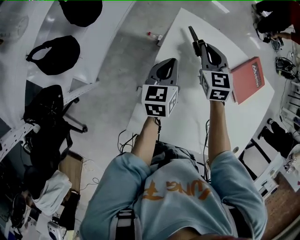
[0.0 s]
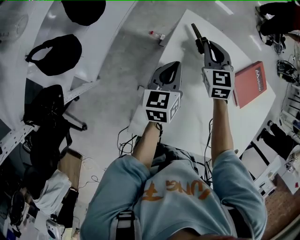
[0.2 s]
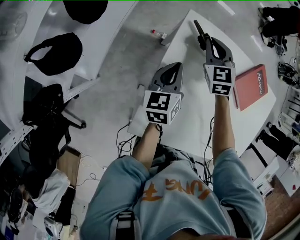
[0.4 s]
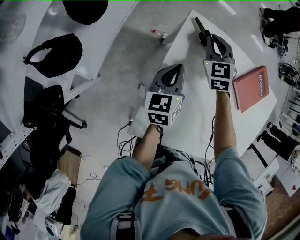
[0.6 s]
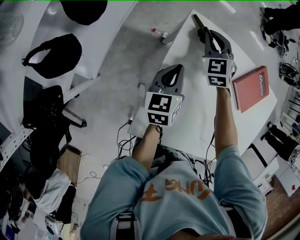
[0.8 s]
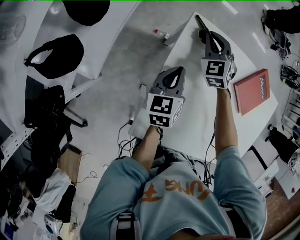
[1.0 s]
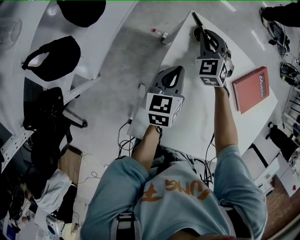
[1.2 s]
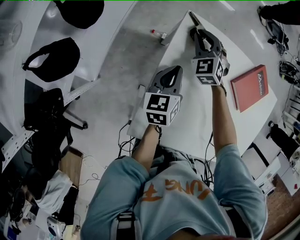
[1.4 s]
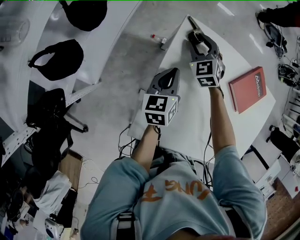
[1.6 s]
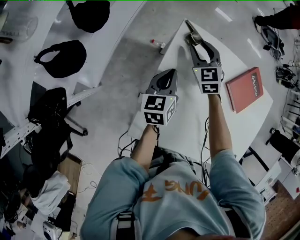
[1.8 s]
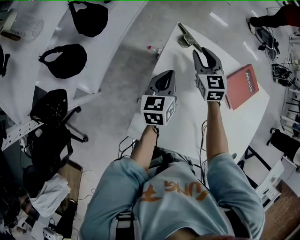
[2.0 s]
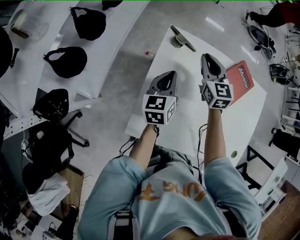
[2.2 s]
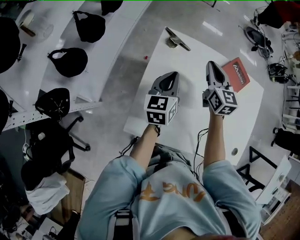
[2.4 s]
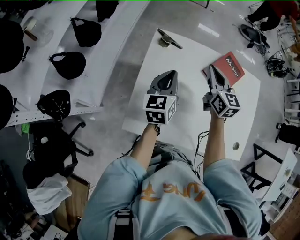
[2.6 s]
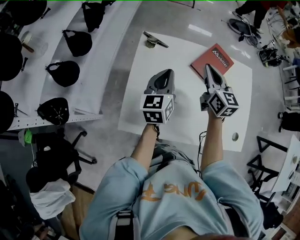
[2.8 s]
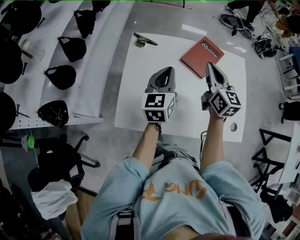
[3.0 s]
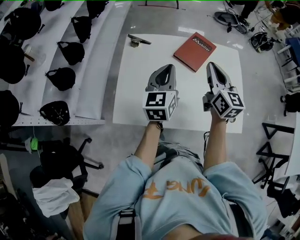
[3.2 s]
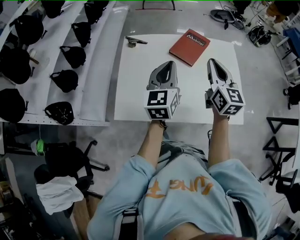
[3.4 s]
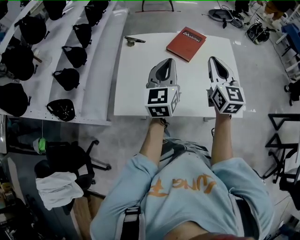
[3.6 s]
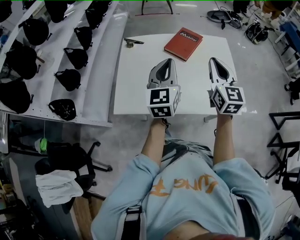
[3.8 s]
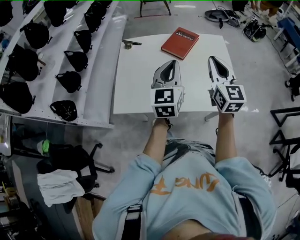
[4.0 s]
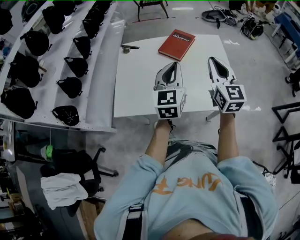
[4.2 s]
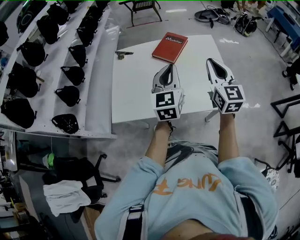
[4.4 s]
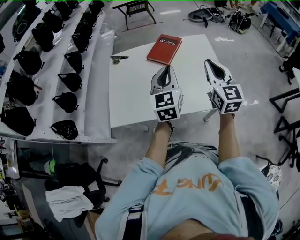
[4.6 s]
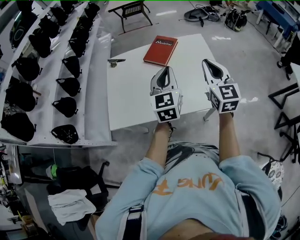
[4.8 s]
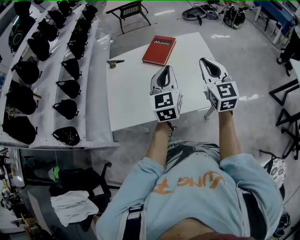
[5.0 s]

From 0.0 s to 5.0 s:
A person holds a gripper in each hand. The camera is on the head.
From 0.0 s to 1.6 s: The right gripper shifts approximately 10 cm downward, forward and to the left, swivels roughly 20 degrees, and opens up.
From 1.6 s to 3.4 s: The right gripper goes approximately 60 cm to the right, backward and upward, tilts its fingers about 30 degrees upward, and closes its fingers; the left gripper travels to the right, upward and backward by approximately 40 cm, and turns by roughly 30 degrees.
From 3.4 s to 5.0 s: The grippers both shift to the right and backward by approximately 20 cm.

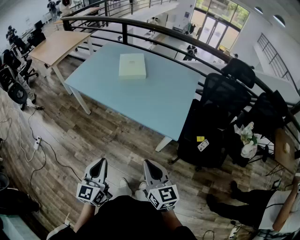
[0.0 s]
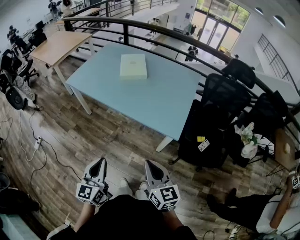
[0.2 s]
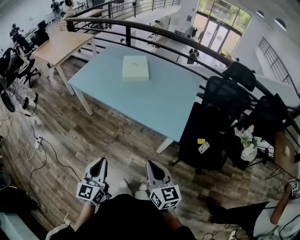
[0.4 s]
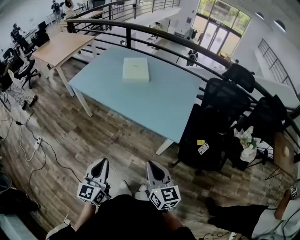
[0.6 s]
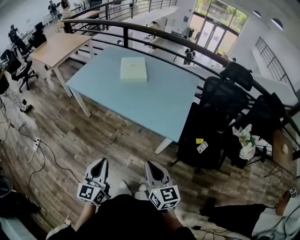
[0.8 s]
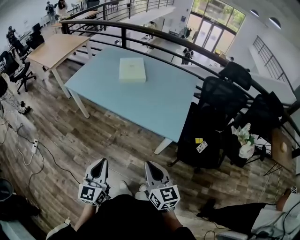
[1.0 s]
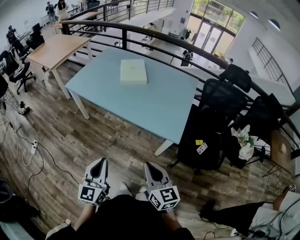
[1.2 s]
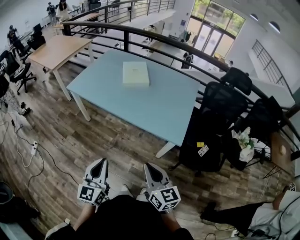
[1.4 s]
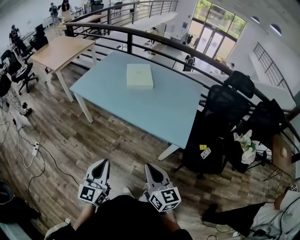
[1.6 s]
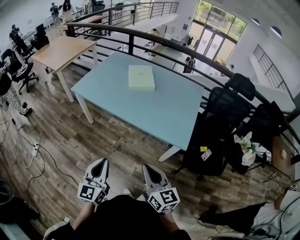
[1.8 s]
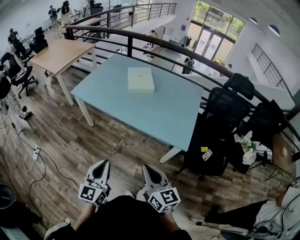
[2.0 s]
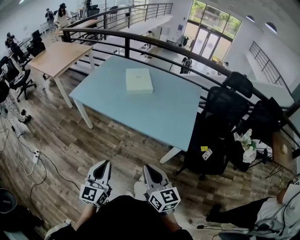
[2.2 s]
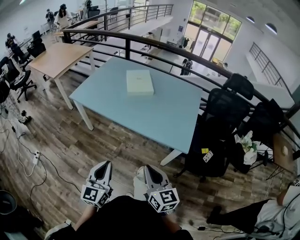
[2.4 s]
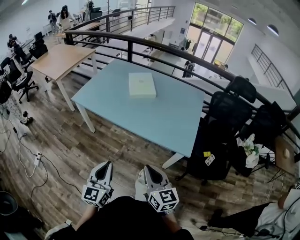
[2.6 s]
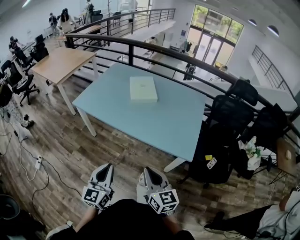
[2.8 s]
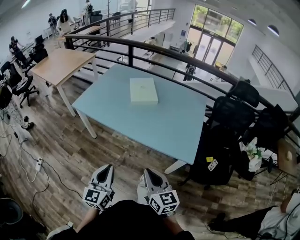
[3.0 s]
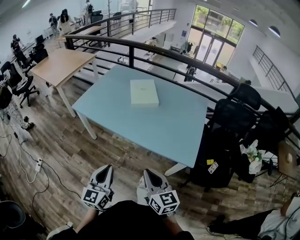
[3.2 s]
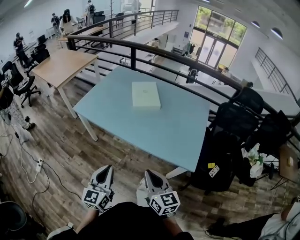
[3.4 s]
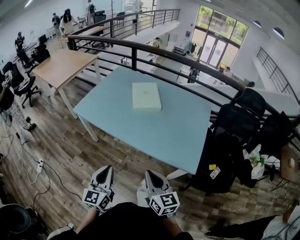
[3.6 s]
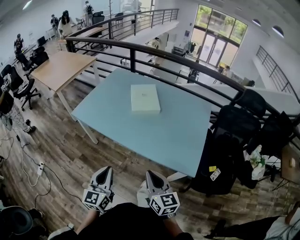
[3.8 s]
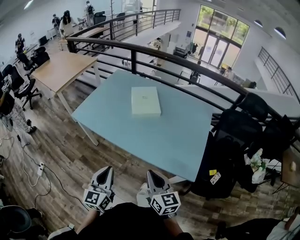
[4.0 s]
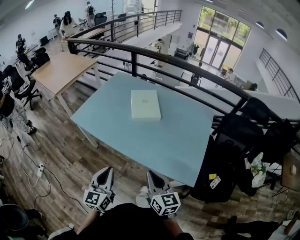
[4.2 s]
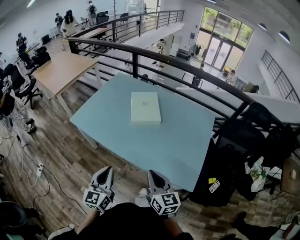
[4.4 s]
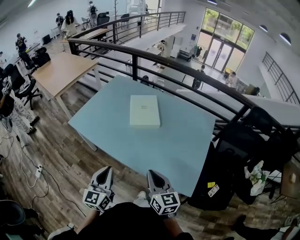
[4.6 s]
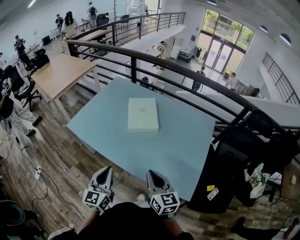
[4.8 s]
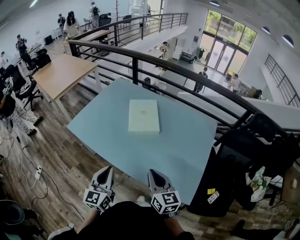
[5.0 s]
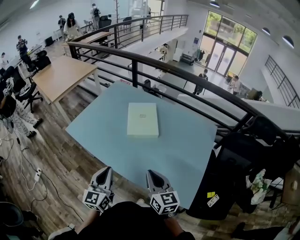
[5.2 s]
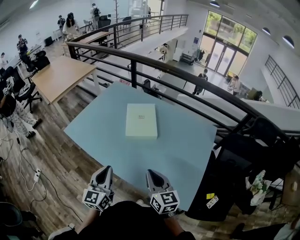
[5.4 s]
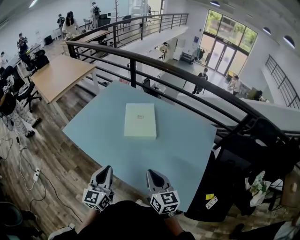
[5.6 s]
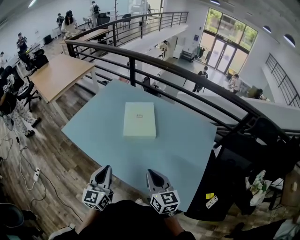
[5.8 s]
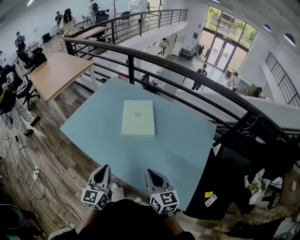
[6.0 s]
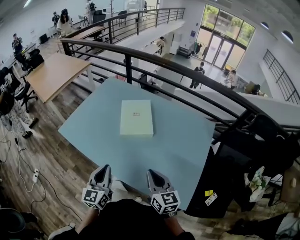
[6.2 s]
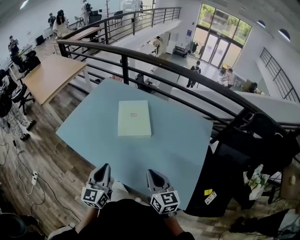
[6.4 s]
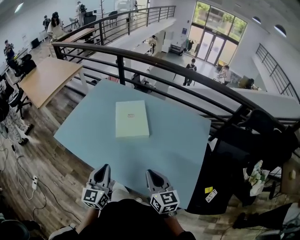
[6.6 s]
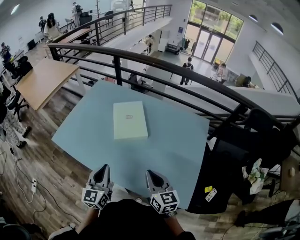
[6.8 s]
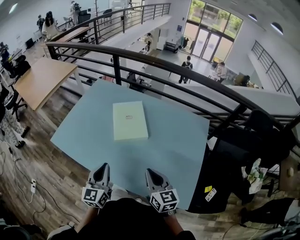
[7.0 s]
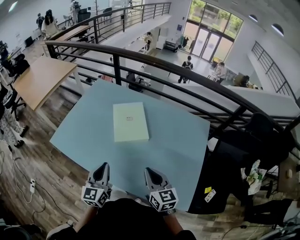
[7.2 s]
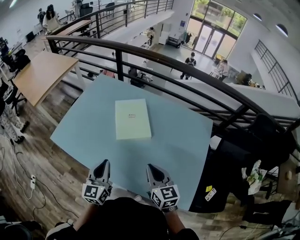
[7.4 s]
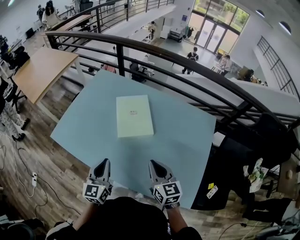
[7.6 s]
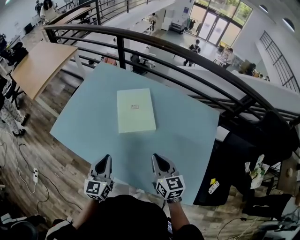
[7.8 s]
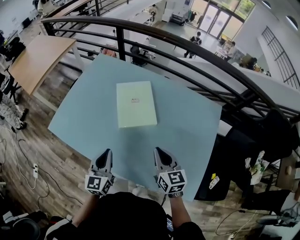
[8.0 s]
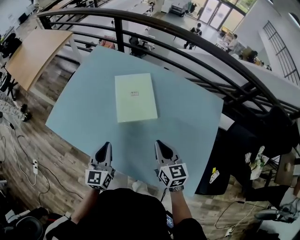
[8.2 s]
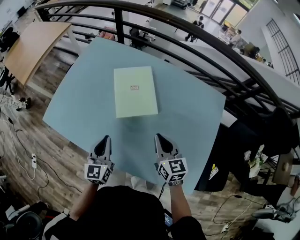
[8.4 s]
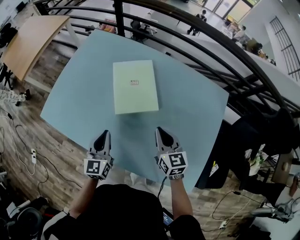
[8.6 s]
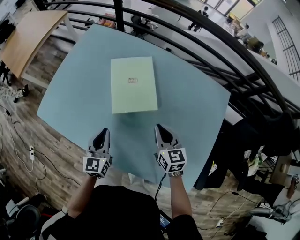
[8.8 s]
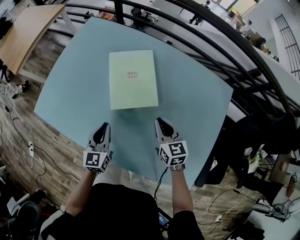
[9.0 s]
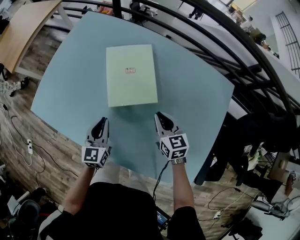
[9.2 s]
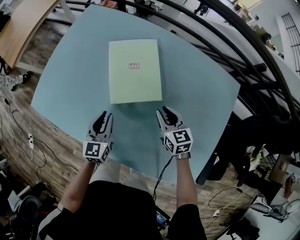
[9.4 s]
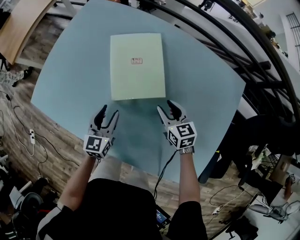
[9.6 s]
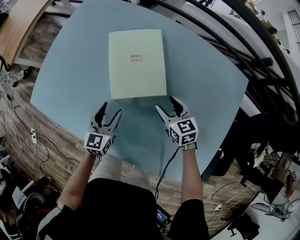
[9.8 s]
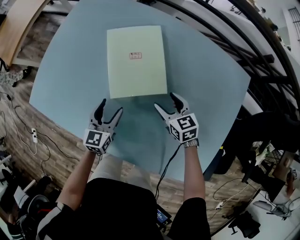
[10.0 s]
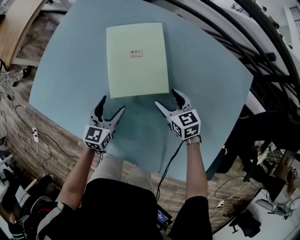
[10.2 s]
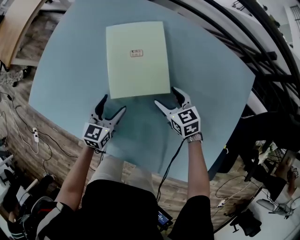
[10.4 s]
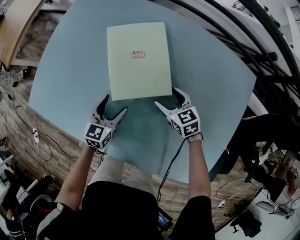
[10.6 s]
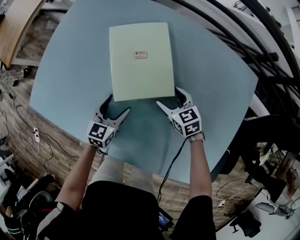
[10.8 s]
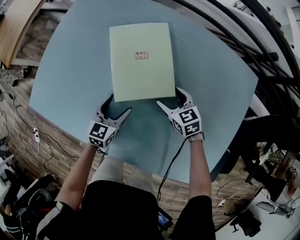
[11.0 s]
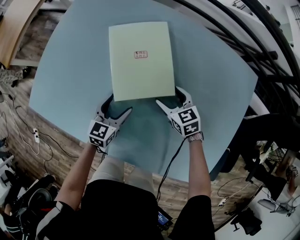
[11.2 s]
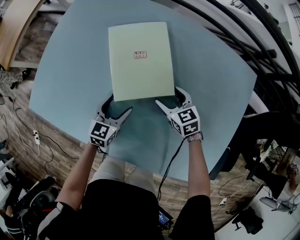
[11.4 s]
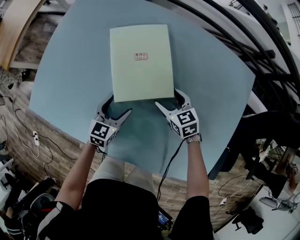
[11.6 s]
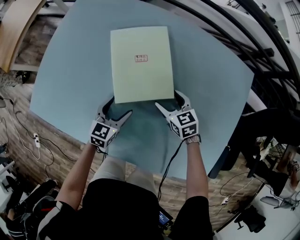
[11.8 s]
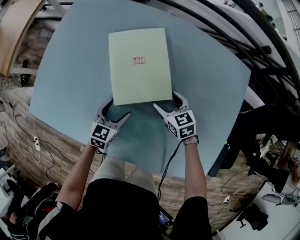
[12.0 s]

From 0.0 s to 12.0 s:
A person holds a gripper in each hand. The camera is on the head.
From 0.0 s to 1.6 s: The grippers both shift to the left by about 5 cm.
From 1.6 s to 3.0 s: The grippers both shift forward by approximately 10 cm.
From 3.0 s to 4.4 s: Both grippers move forward, roughly 15 cm.
From 4.4 s to 6.0 s: The left gripper goes about 15 cm forward; the right gripper travels forward and to the right by approximately 15 cm.
From 6.0 s to 7.6 s: The two grippers go about 10 cm forward.
From 7.6 s to 9.0 s: Both grippers move downward and forward, roughly 20 cm.
From 9.0 s to 10.4 s: The grippers both shift downward and forward by some 15 cm. The right gripper opens, while the left gripper opens its fingers.
From 10.4 s to 12.0 s: There are only small adjustments of the grippers.

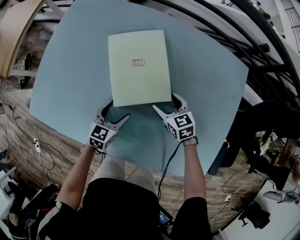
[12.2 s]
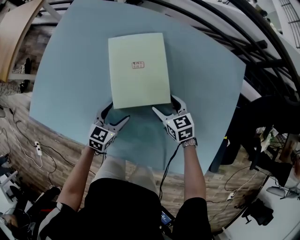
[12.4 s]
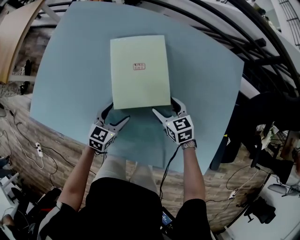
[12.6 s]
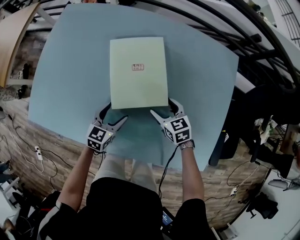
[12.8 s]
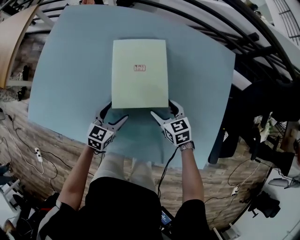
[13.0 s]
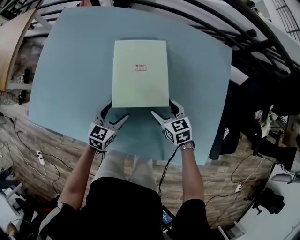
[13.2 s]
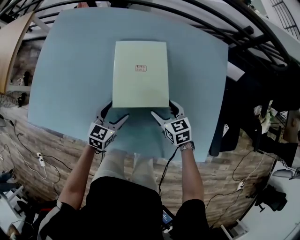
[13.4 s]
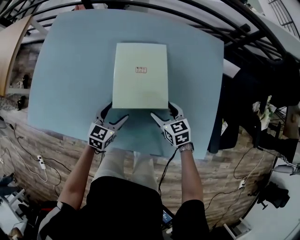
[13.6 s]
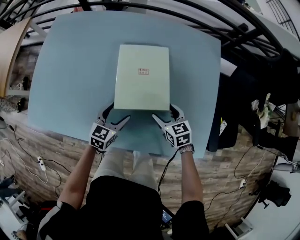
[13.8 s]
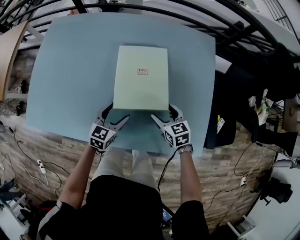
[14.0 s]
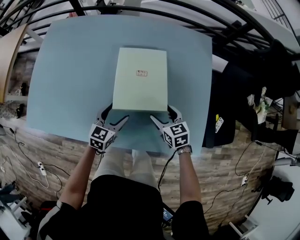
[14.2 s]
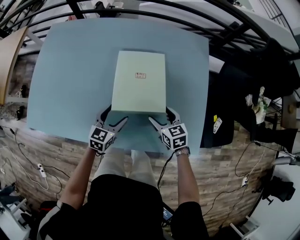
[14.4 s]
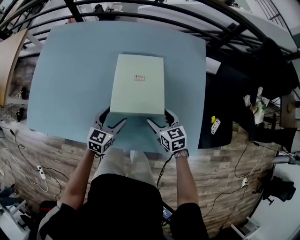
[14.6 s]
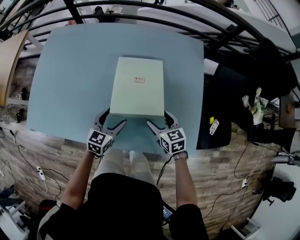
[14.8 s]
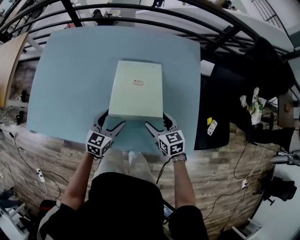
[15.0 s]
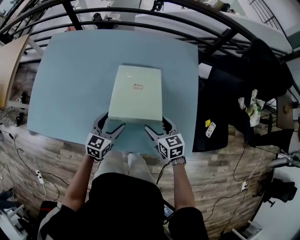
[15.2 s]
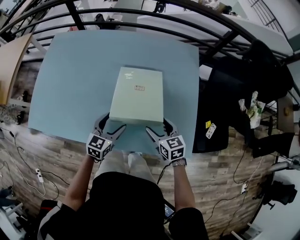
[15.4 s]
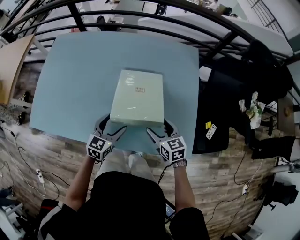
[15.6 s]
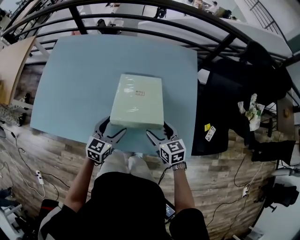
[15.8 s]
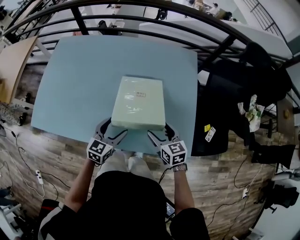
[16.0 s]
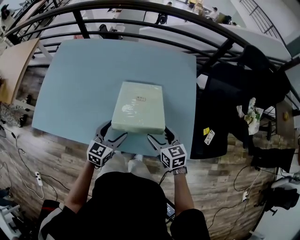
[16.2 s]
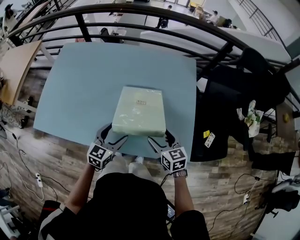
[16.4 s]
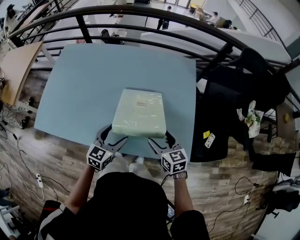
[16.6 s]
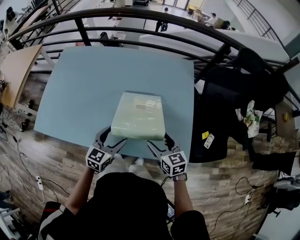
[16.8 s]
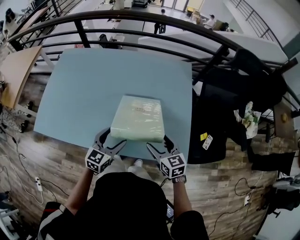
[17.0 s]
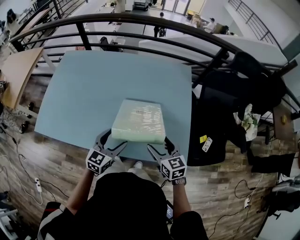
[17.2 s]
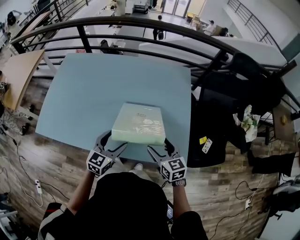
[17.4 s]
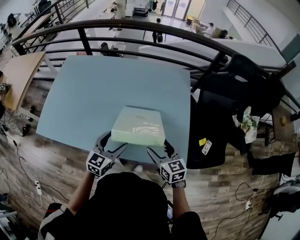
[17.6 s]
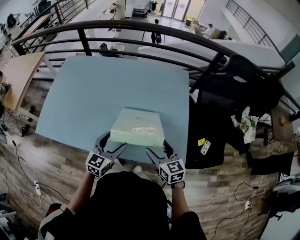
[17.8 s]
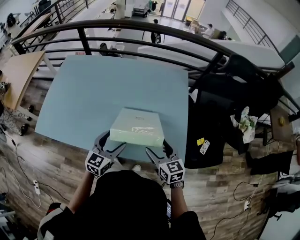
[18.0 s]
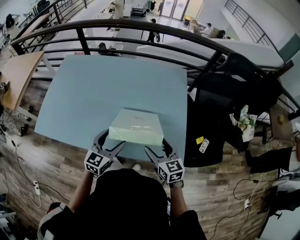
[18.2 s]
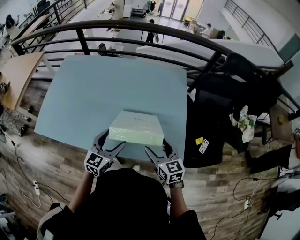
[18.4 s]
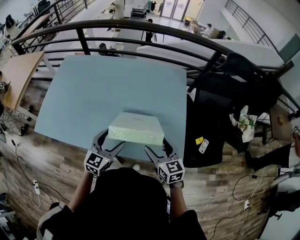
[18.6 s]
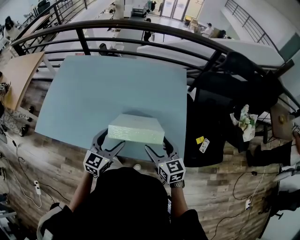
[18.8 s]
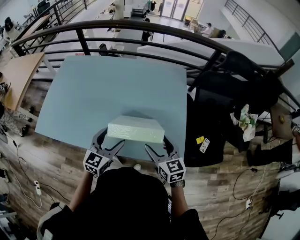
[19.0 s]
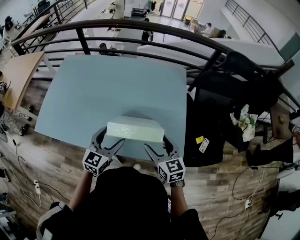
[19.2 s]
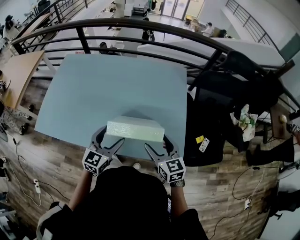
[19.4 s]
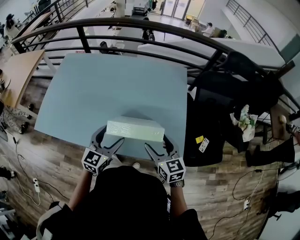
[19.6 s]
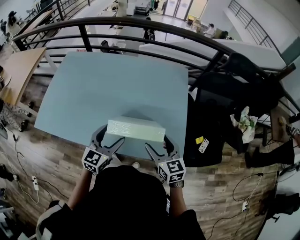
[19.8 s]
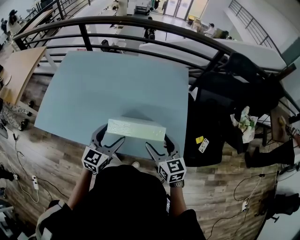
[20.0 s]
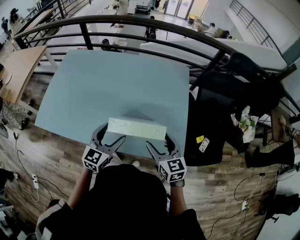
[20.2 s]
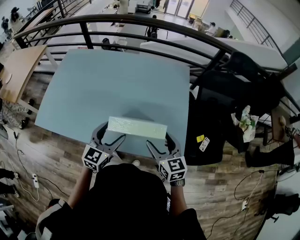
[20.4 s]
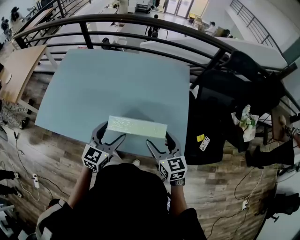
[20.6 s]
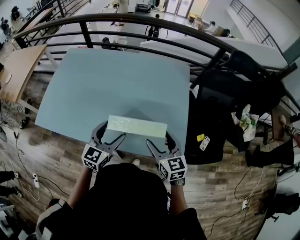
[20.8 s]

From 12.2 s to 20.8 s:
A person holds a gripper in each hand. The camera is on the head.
From 12.2 s to 13.6 s: The left gripper shifts roughly 10 cm backward and to the right; the right gripper goes roughly 15 cm backward and to the right.
From 13.6 s to 15.0 s: The left gripper moves to the right and upward, approximately 10 cm; the right gripper travels backward, upward and to the right by about 10 cm.
From 15.0 s to 16.6 s: Both grippers travel together upward and backward, about 10 cm.
From 16.6 s to 18.0 s: The right gripper shifts by some 5 cm, while the left gripper changes place by roughly 5 cm.
From 18.0 s to 19.4 s: The grippers move only a little.
From 19.4 s to 20.8 s: The two grippers keep their place.
